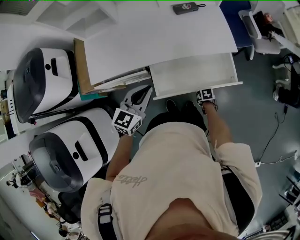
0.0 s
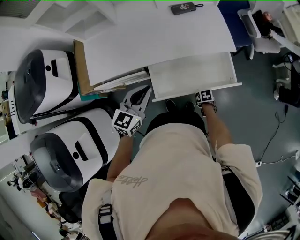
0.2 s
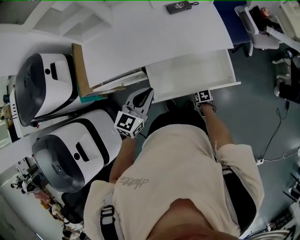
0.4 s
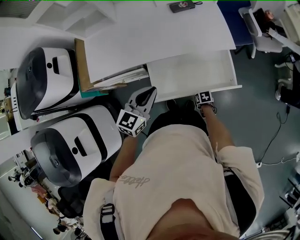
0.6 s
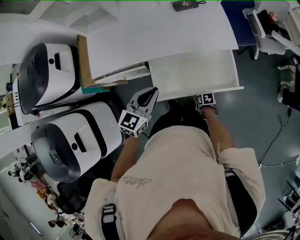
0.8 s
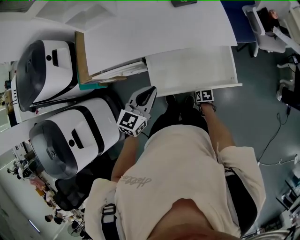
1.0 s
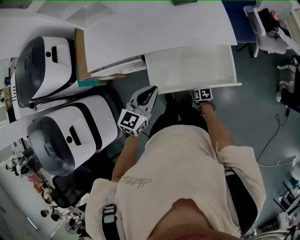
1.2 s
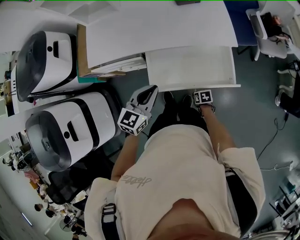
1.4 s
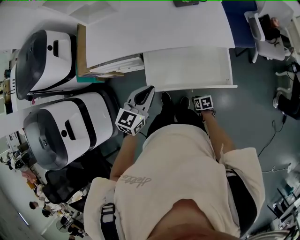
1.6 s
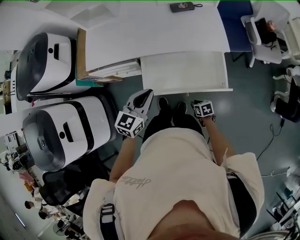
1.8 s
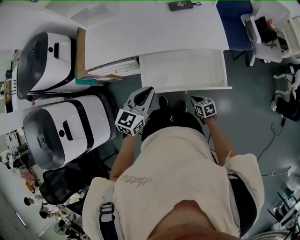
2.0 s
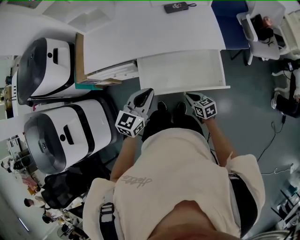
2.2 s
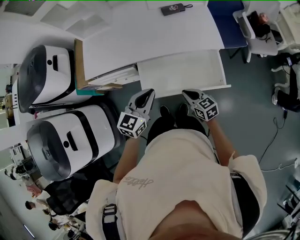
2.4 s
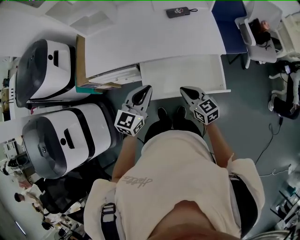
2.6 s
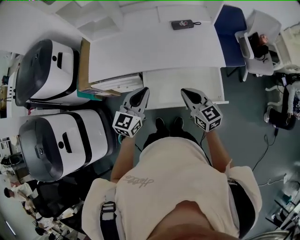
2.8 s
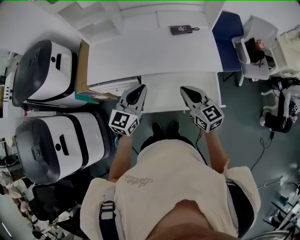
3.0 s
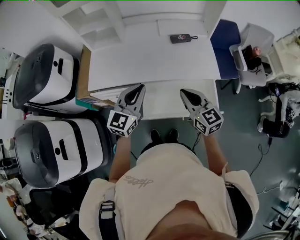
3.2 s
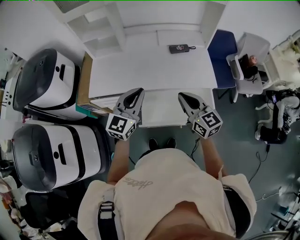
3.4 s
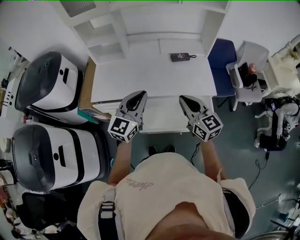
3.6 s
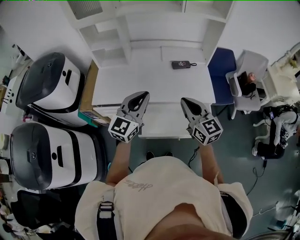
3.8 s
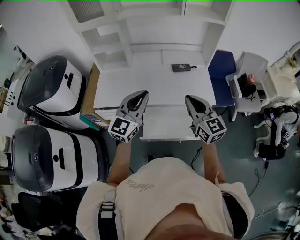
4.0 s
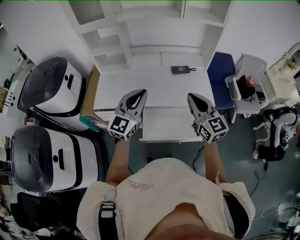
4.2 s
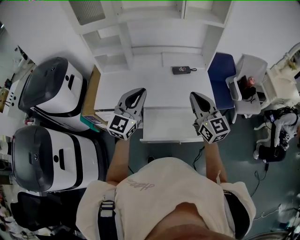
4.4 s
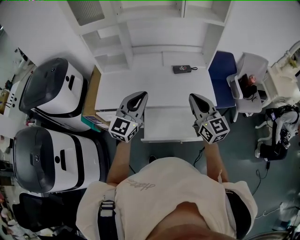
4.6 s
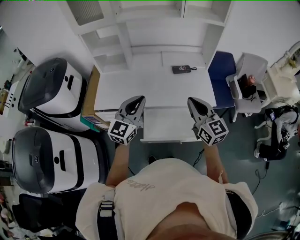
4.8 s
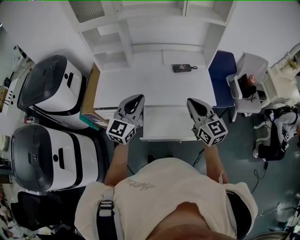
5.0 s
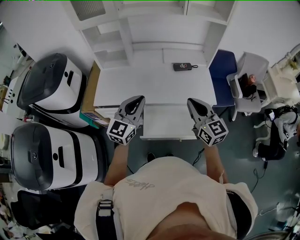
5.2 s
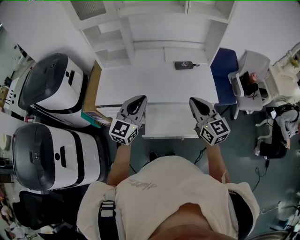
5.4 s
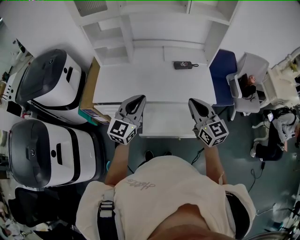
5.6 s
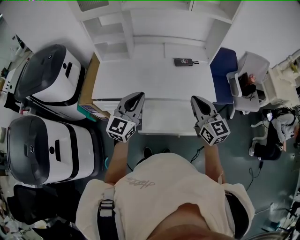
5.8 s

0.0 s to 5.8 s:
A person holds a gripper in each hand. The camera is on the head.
0.0 to 1.4 s: The left gripper ends up some 10 cm from where it was. Meanwhile the right gripper shifts by roughly 5 cm.
1.4 to 2.8 s: The left gripper is displaced upward by about 5 cm, while the right gripper travels upward by approximately 40 cm, points its fingers approximately 50 degrees further upward, and closes.
2.8 to 4.4 s: The two grippers go some 20 cm upward. The right gripper swivels some 20 degrees, while the left gripper rotates about 20 degrees.
4.4 to 5.8 s: The left gripper heads downward, covering some 5 cm, while the right gripper moves roughly 5 cm.

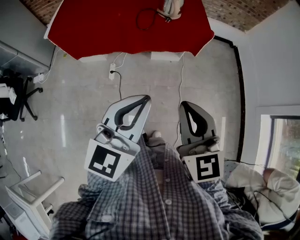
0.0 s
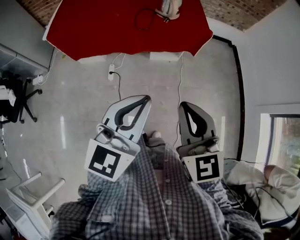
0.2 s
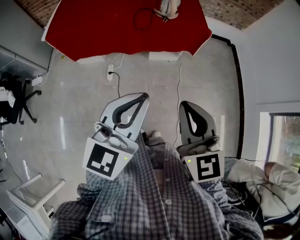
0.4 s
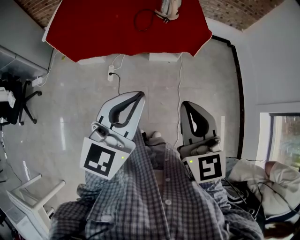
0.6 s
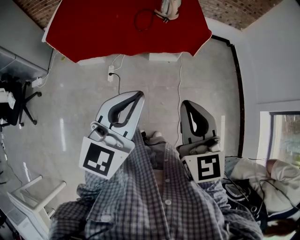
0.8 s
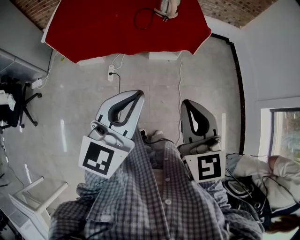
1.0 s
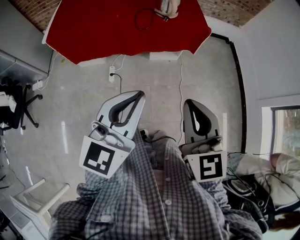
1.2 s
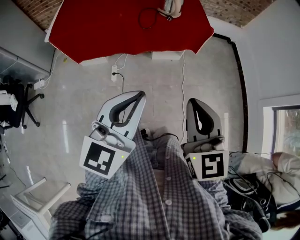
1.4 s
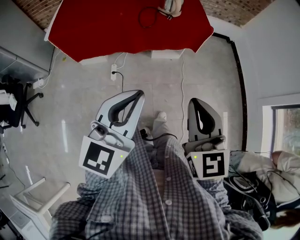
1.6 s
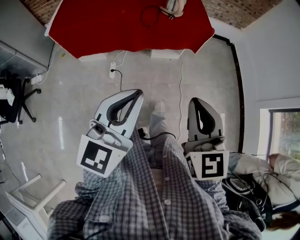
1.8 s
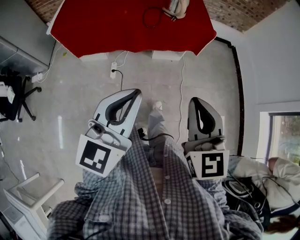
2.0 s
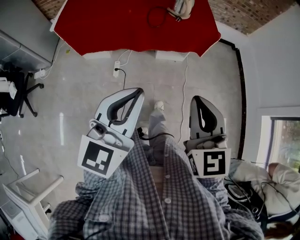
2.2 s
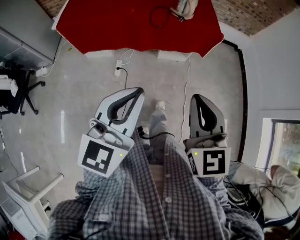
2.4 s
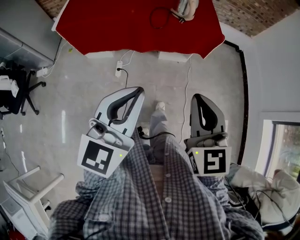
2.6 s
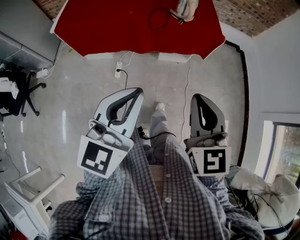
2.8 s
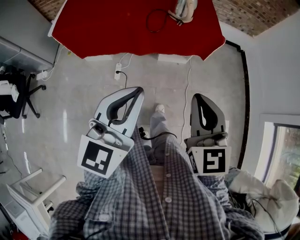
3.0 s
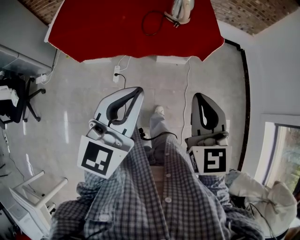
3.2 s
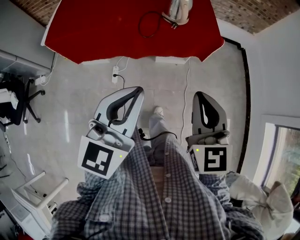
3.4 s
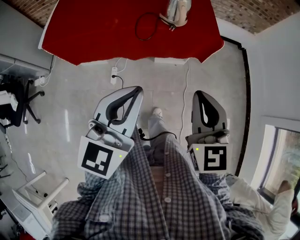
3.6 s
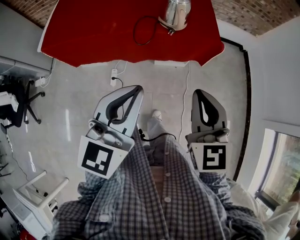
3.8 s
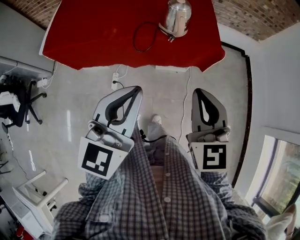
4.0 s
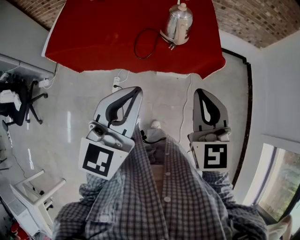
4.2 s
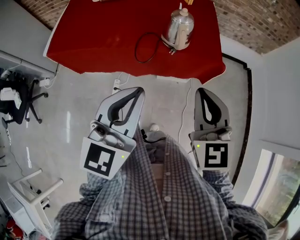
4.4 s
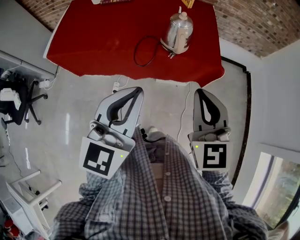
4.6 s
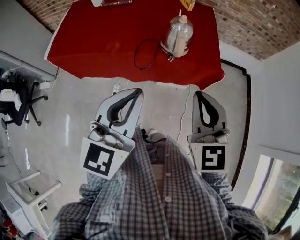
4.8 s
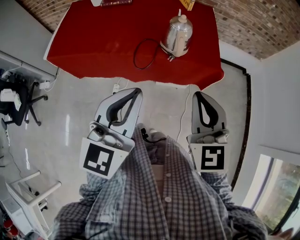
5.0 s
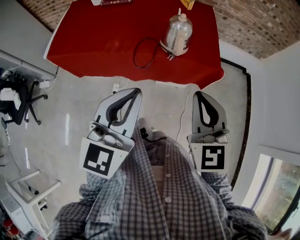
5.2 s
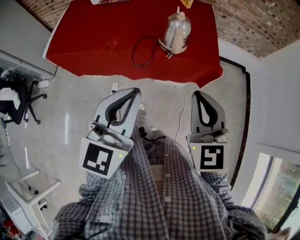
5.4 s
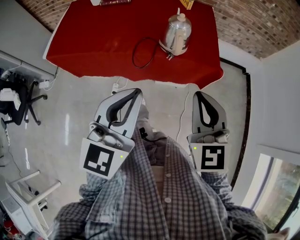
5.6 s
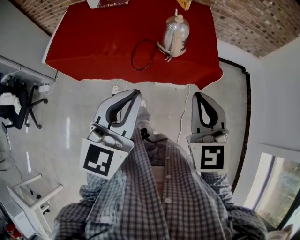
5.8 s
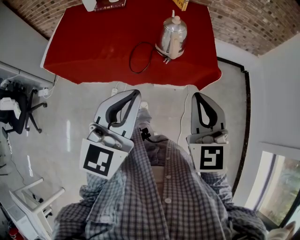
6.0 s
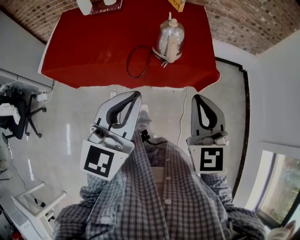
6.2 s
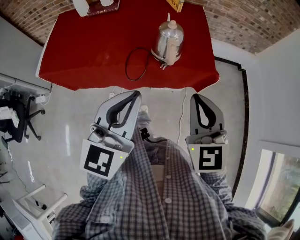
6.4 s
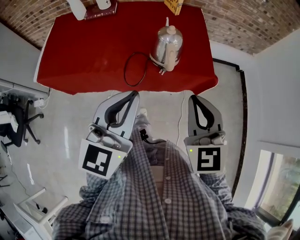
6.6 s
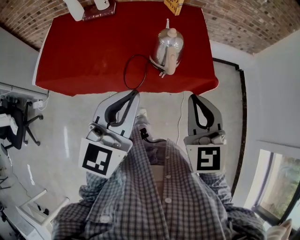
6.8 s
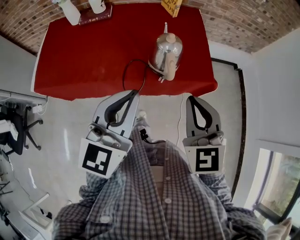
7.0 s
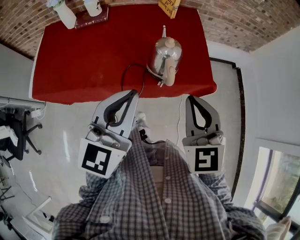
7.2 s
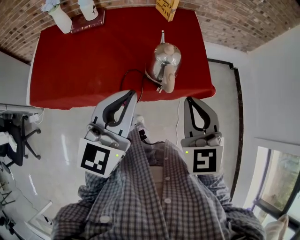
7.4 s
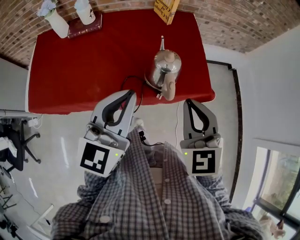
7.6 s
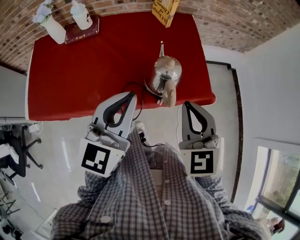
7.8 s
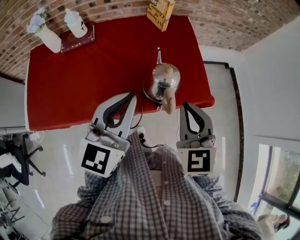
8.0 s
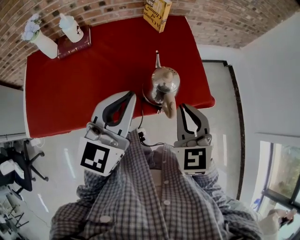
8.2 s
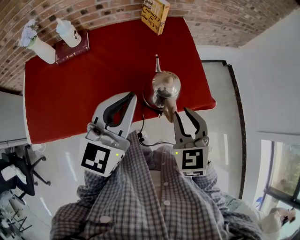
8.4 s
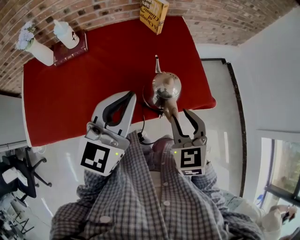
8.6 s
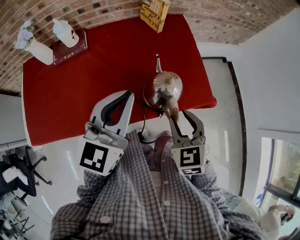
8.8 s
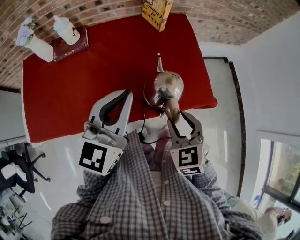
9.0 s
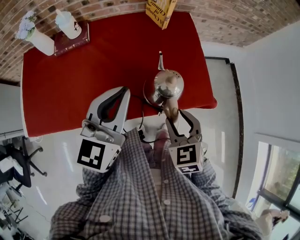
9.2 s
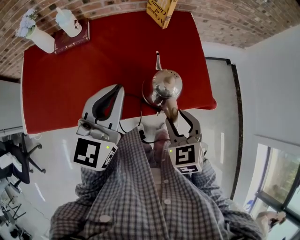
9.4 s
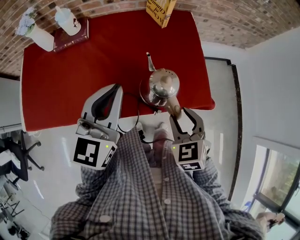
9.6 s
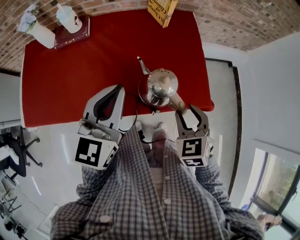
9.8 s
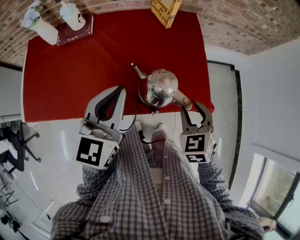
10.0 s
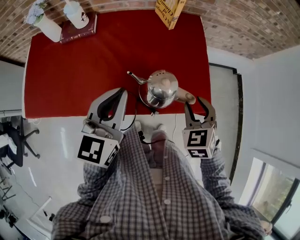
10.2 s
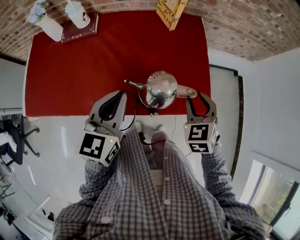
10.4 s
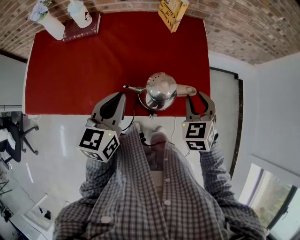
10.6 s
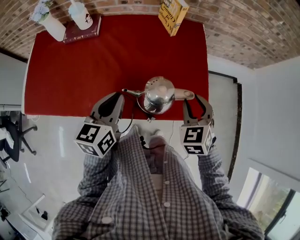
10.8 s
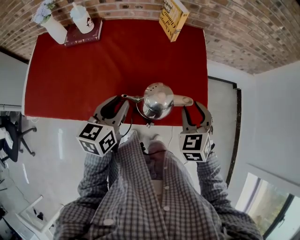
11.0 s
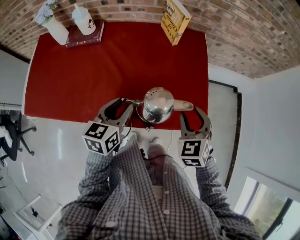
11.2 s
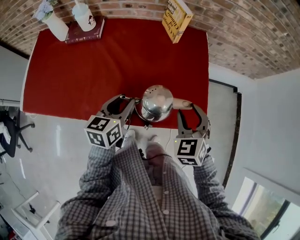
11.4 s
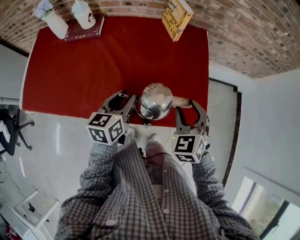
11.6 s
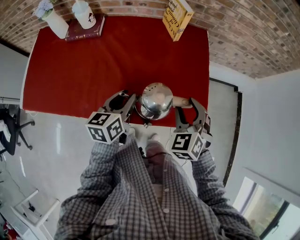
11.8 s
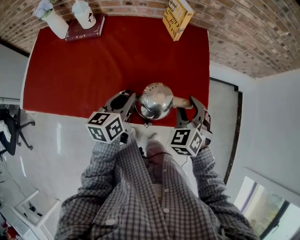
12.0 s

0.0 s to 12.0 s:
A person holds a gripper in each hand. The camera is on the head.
0.0 to 1.6 s: The left gripper shifts some 5 cm to the left.
1.6 to 3.0 s: The grippers both shift forward by some 10 cm.
3.0 to 4.4 s: Both grippers move forward, approximately 20 cm.
4.4 to 6.0 s: The grippers move only a little.
6.0 to 7.6 s: Both grippers travel together forward, about 20 cm.
7.6 to 9.0 s: The right gripper heads downward and forward, covering approximately 15 cm, turns by some 20 degrees, and opens. The left gripper is displaced forward by roughly 10 cm.
9.0 to 10.4 s: The left gripper heads downward, covering some 5 cm; the right gripper goes approximately 15 cm forward and to the right.
10.4 to 12.0 s: The left gripper is displaced downward and forward by approximately 10 cm, rotates about 30 degrees, and opens up.

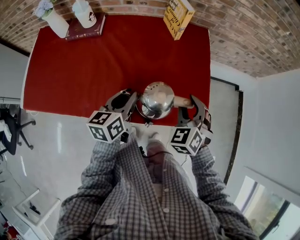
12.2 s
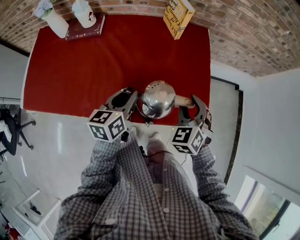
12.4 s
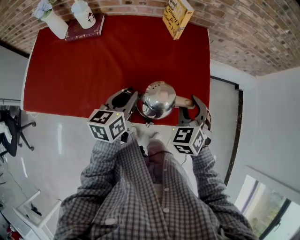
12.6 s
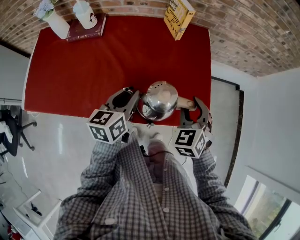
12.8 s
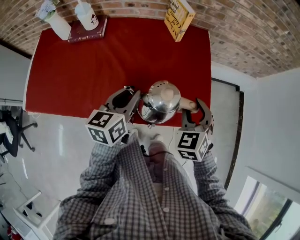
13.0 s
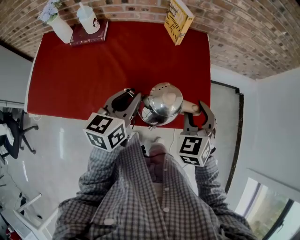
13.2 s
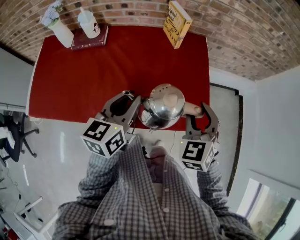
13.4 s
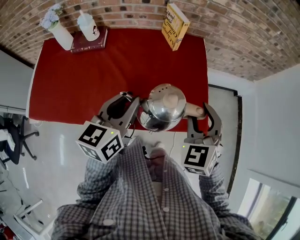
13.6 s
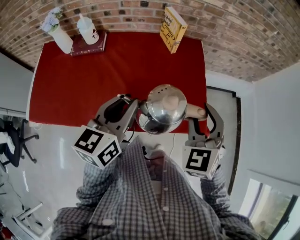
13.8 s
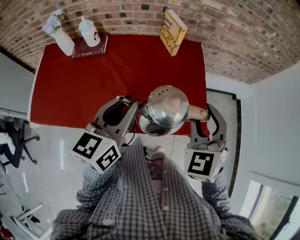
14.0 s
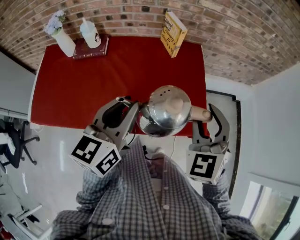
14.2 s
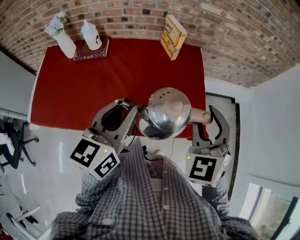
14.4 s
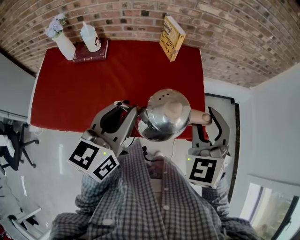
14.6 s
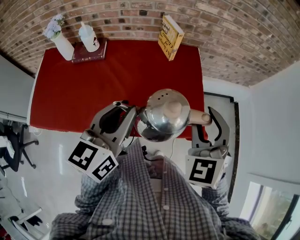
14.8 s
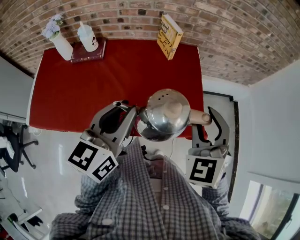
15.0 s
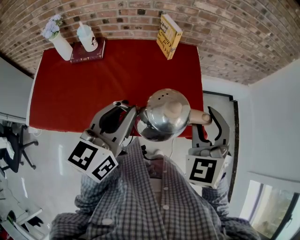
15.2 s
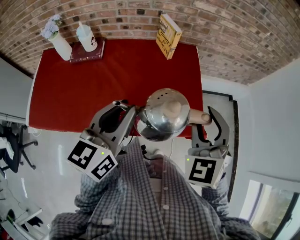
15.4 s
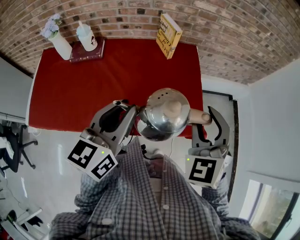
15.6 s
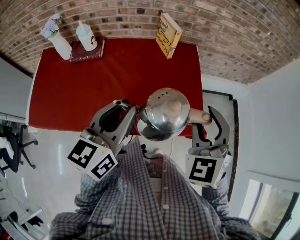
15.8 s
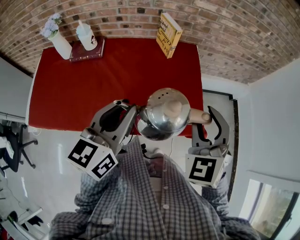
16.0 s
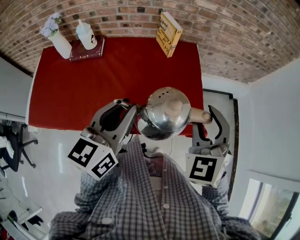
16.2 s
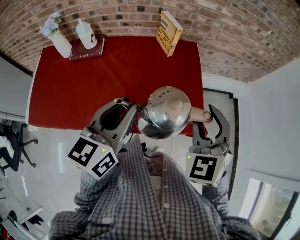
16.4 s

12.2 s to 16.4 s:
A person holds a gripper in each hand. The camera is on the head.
12.2 to 13.6 s: The grippers both shift upward by some 10 cm.
13.6 to 15.0 s: Both grippers move upward, roughly 5 cm.
15.0 to 16.4 s: The two grippers keep their place.

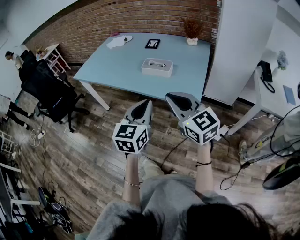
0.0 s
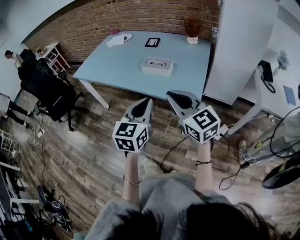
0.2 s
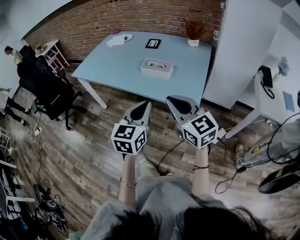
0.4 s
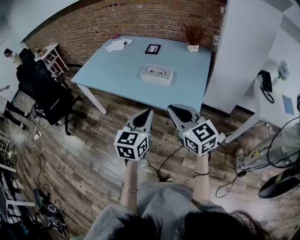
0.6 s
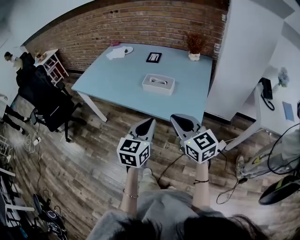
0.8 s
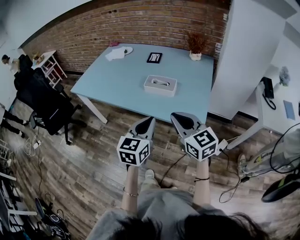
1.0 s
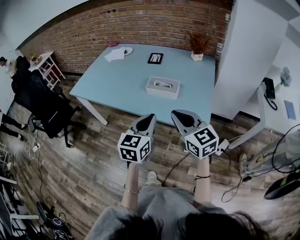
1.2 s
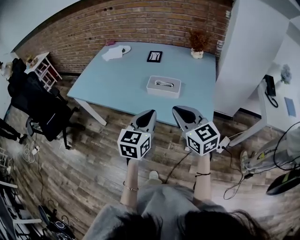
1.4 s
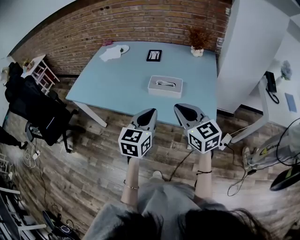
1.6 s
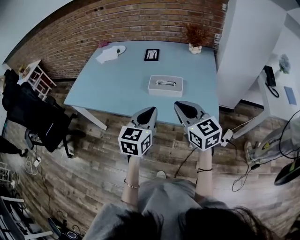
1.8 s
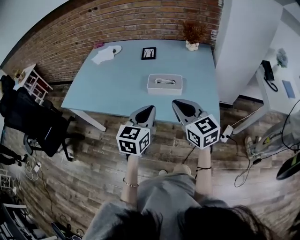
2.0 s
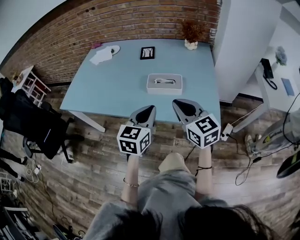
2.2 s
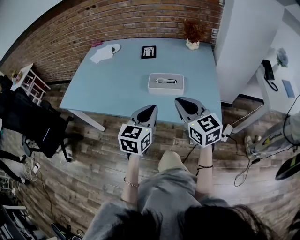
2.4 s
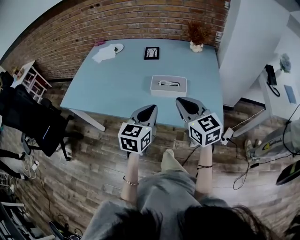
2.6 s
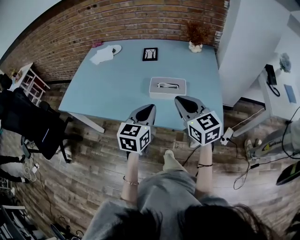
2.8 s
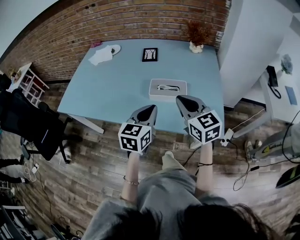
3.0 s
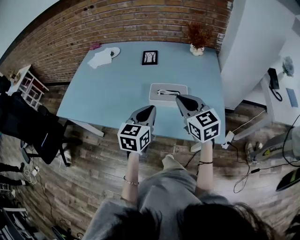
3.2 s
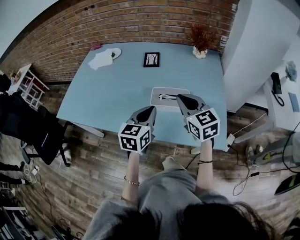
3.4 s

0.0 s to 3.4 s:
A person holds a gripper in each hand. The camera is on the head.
0.0 to 1.6 s: Both grippers travel together forward, approximately 20 cm.
1.6 to 3.4 s: Both grippers travel together forward, about 20 cm.
